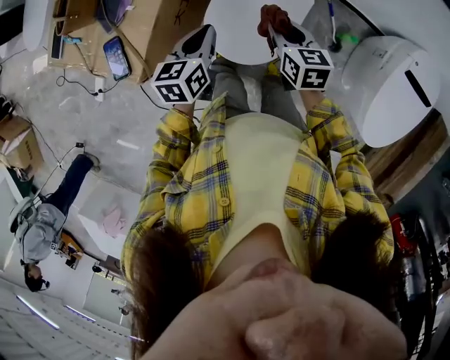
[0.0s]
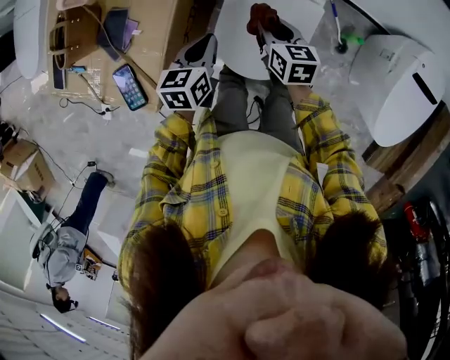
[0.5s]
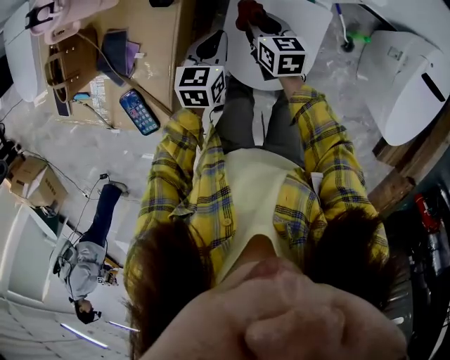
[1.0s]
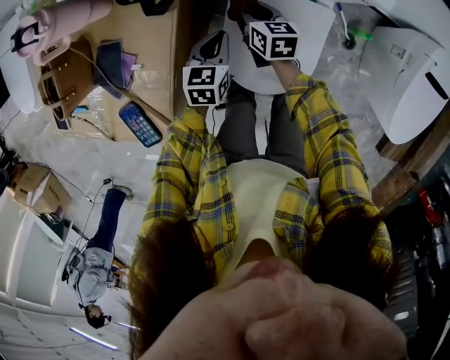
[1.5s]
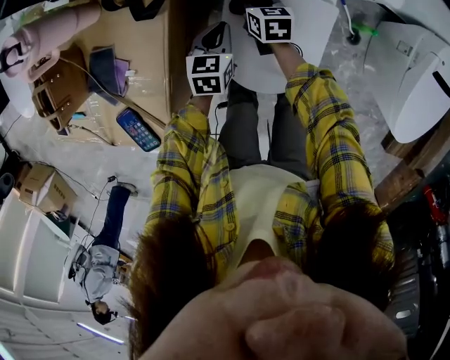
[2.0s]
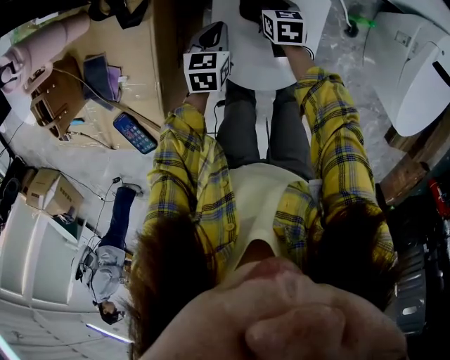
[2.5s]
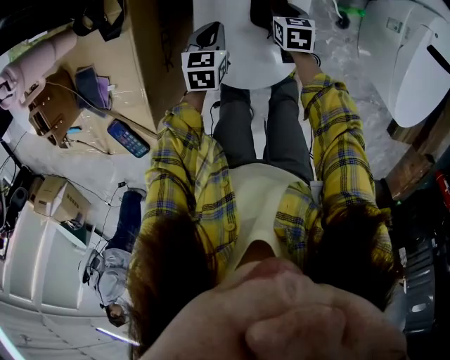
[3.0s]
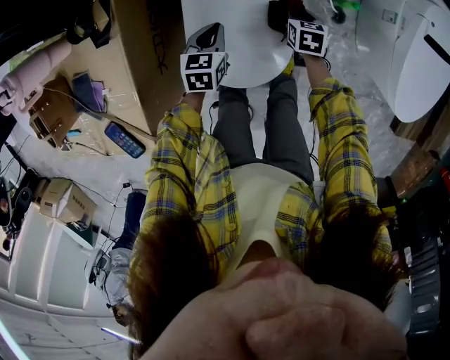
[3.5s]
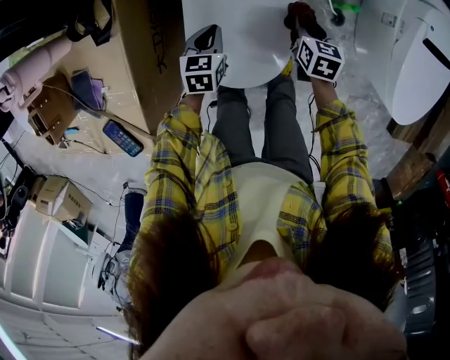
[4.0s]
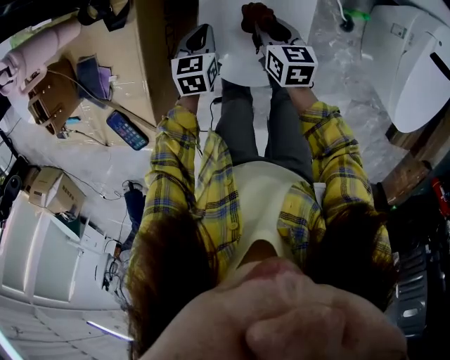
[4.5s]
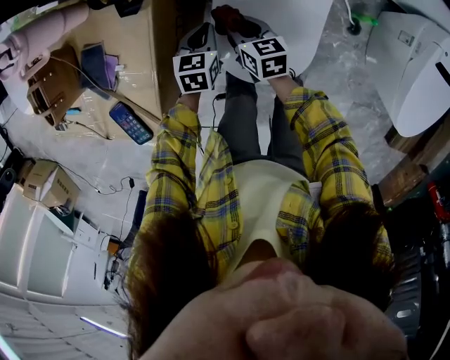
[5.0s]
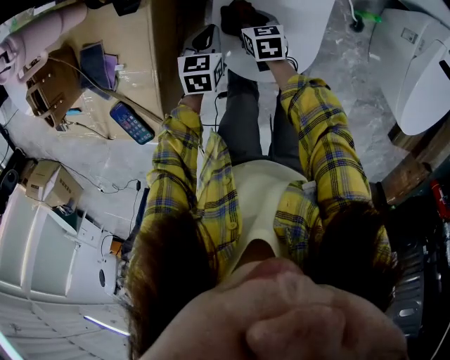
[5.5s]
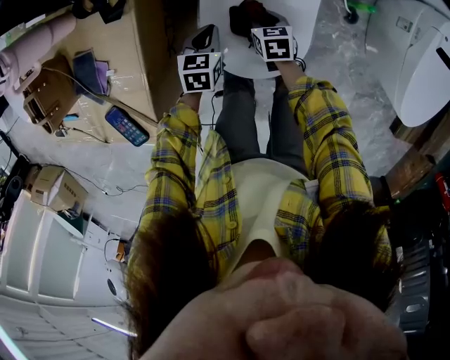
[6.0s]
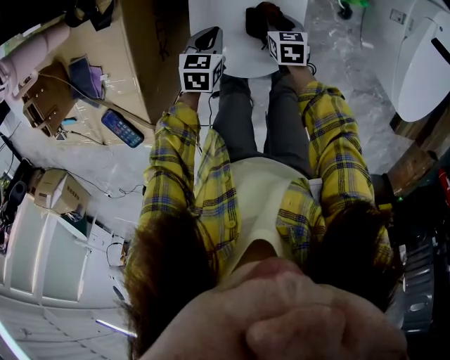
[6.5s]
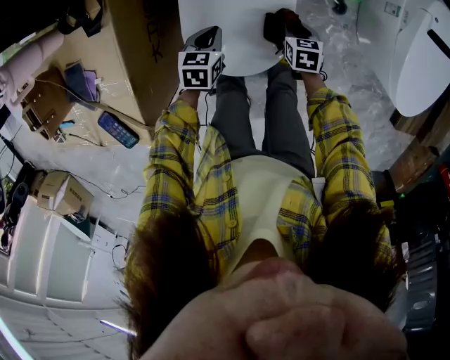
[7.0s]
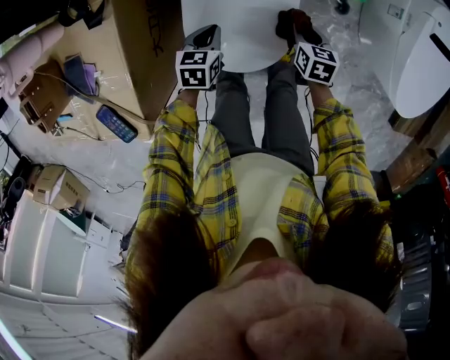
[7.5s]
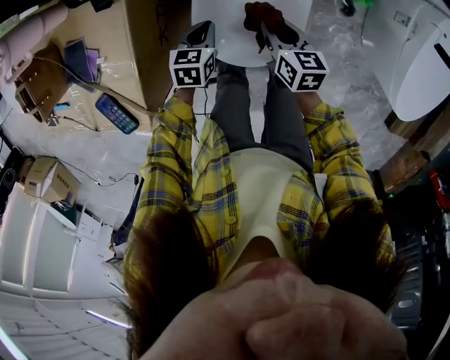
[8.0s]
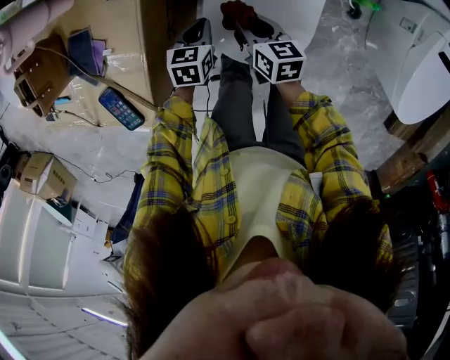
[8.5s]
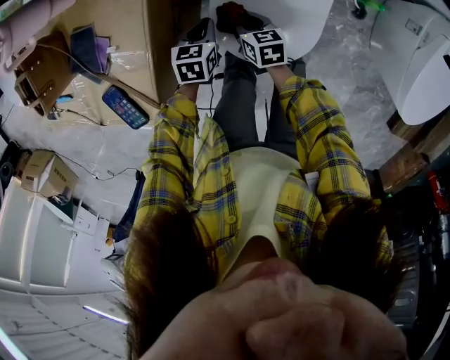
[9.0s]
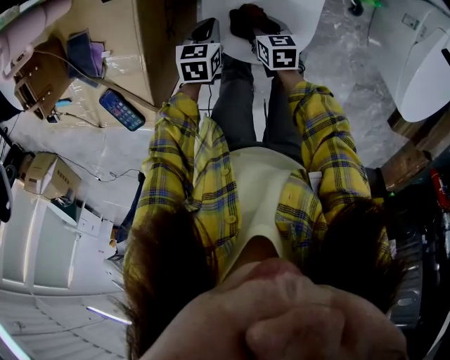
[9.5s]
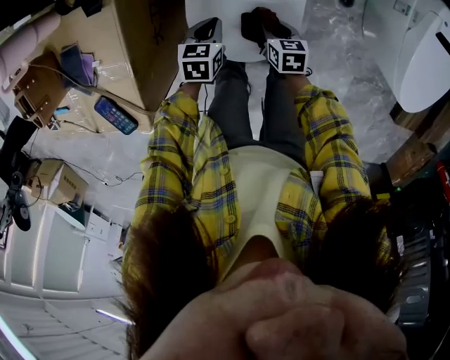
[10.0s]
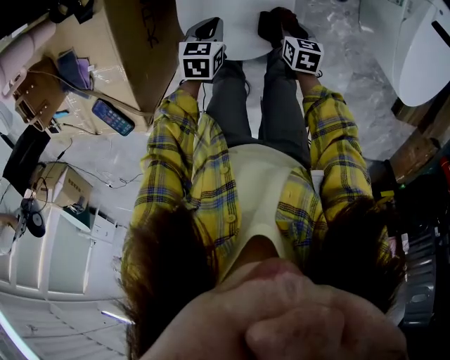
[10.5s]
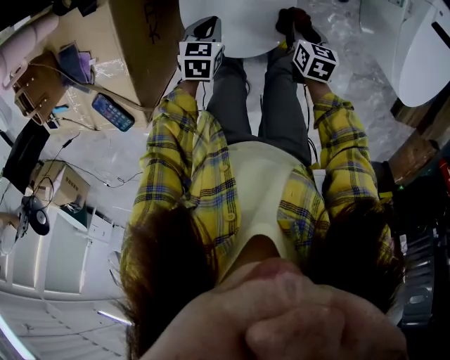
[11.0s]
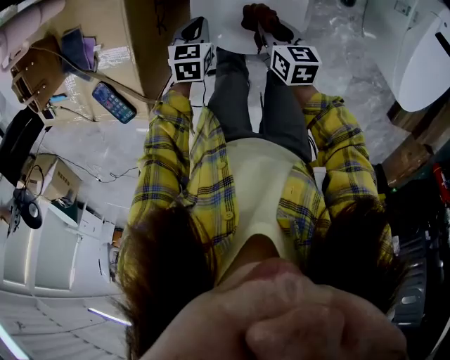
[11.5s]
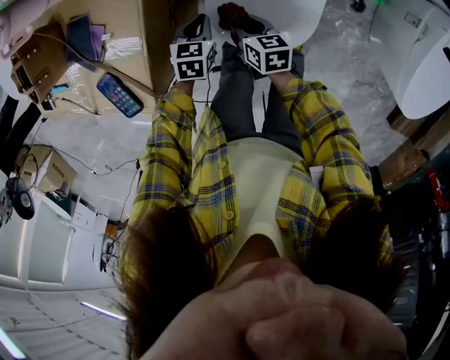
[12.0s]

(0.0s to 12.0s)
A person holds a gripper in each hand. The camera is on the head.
0.0s - 2.0s: The left gripper heads downward and forward, covering roughly 25 cm, and turns by approximately 20 degrees; the right gripper moves downward, forward and to the left, some 30 cm.
2.0s - 4.0s: The right gripper goes approximately 30 cm to the right, and changes its angle by about 20 degrees. Meanwhile the left gripper is displaced to the right by about 10 cm.
4.0s - 6.0s: The left gripper travels to the left by about 5 cm, while the right gripper travels to the left and downward by about 20 cm.
6.0s - 8.0s: The right gripper shifts some 10 cm upward, and reaches about 15 cm to the right, then returns.
8.0s - 10.0s: The right gripper moves downward and backward, about 10 cm, and reaches some 15 cm to the left, then returns. Meanwhile the left gripper travels to the left and back again, roughly 5 cm each way.
10.0s - 12.0s: The left gripper shifts by about 10 cm; the right gripper moves roughly 15 cm.

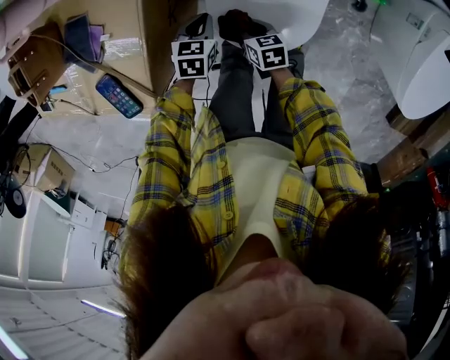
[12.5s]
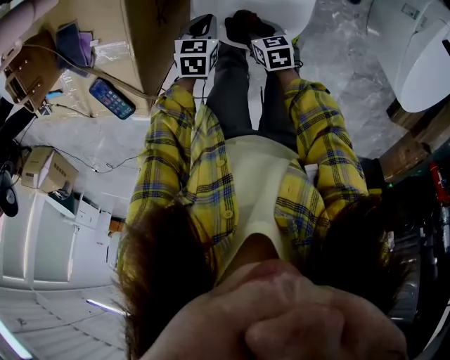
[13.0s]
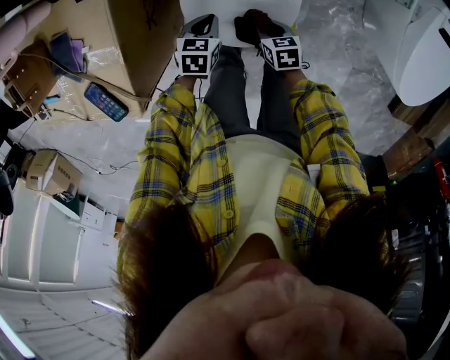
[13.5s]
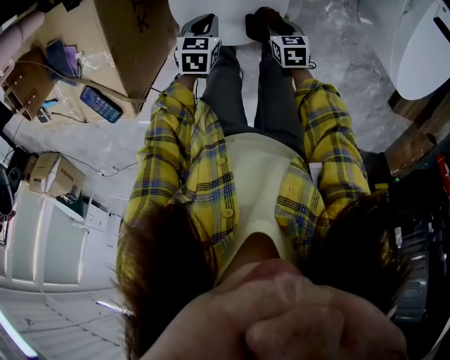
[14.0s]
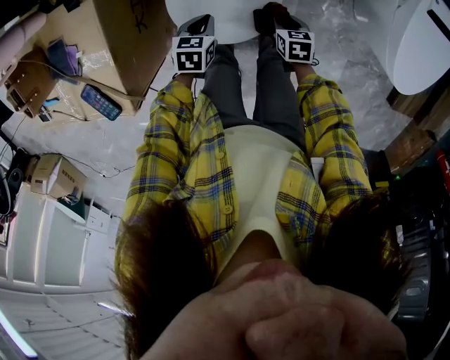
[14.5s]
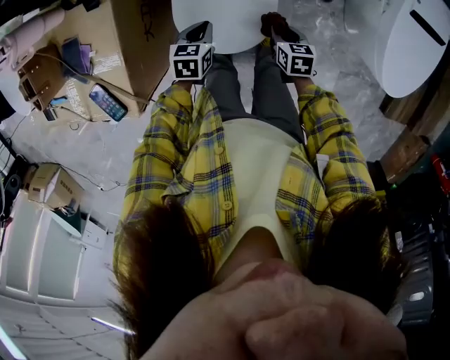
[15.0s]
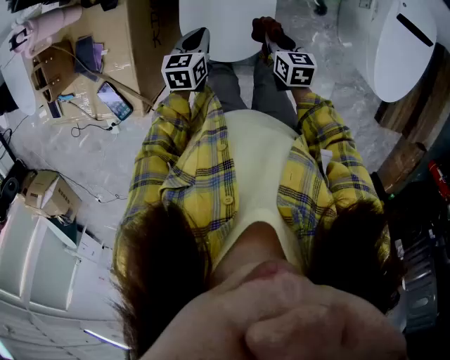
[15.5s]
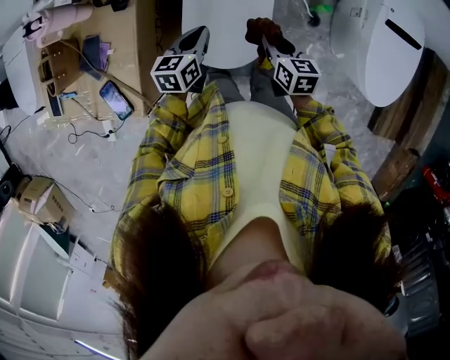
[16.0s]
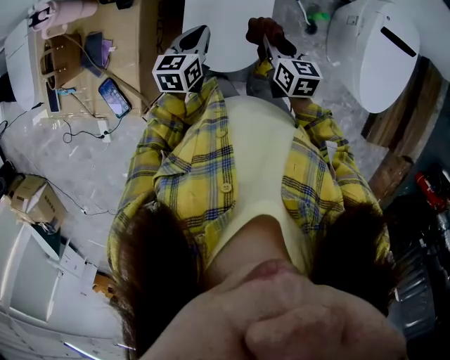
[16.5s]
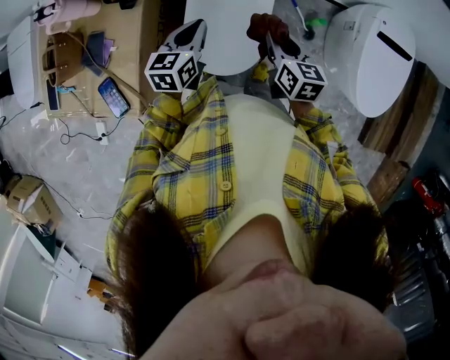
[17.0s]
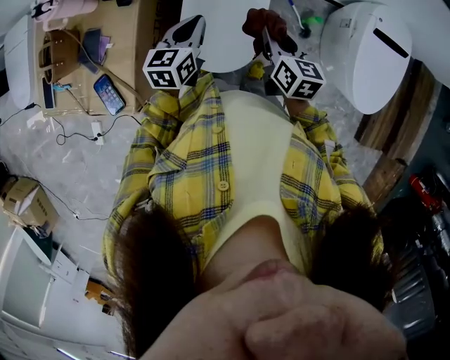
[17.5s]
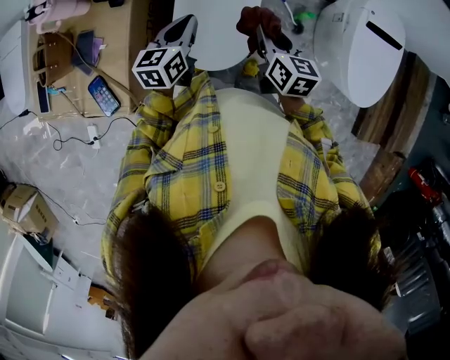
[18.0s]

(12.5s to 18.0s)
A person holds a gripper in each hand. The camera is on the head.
12.5s - 14.5s: The left gripper moves to the right, some 10 cm. The right gripper shifts about 25 cm to the right, and rotates about 20 degrees.
14.5s - 16.0s: The two grippers go some 20 cm upward. The right gripper changes its angle by some 30 degrees. The left gripper swivels about 30 degrees.
16.0s - 18.0s: The two grippers go some 10 cm upward.

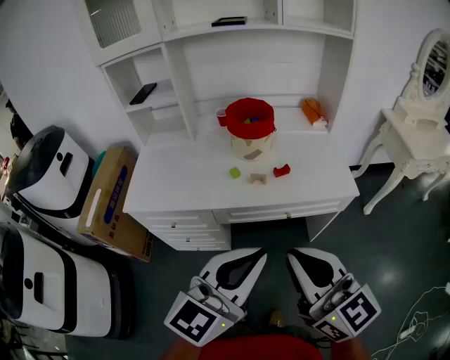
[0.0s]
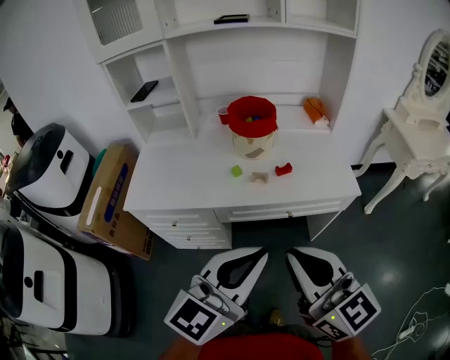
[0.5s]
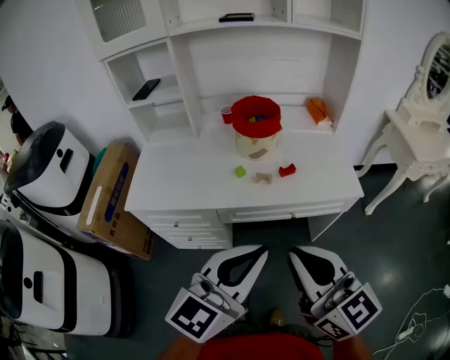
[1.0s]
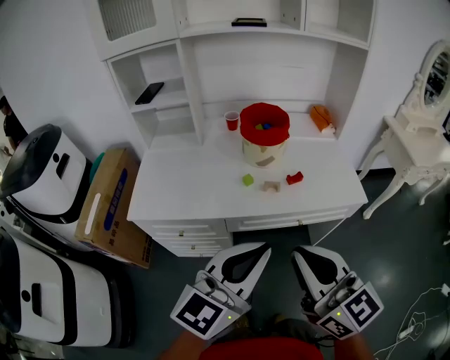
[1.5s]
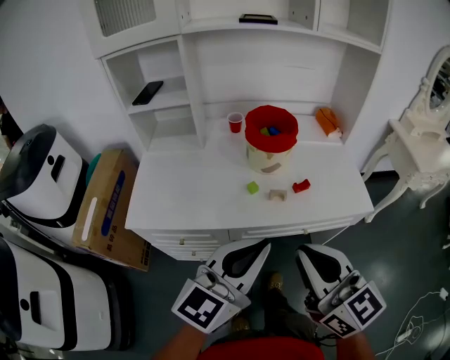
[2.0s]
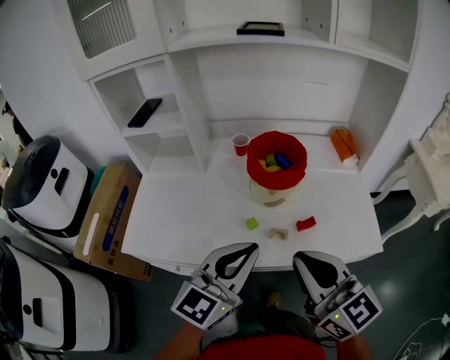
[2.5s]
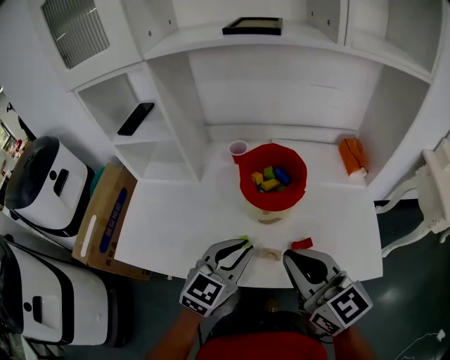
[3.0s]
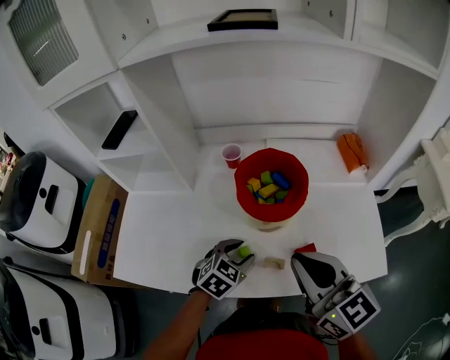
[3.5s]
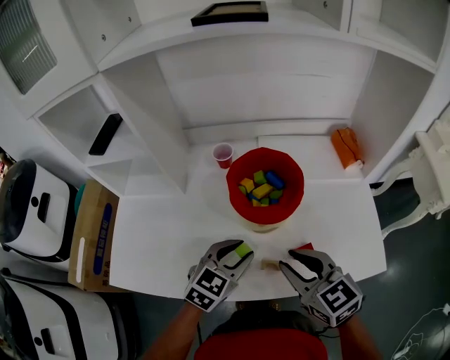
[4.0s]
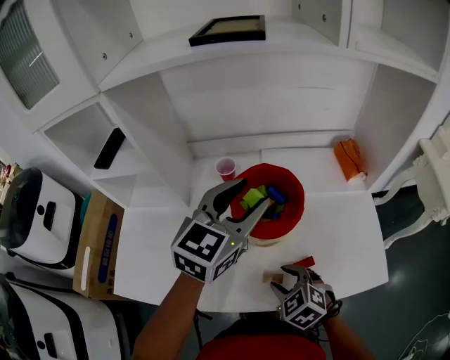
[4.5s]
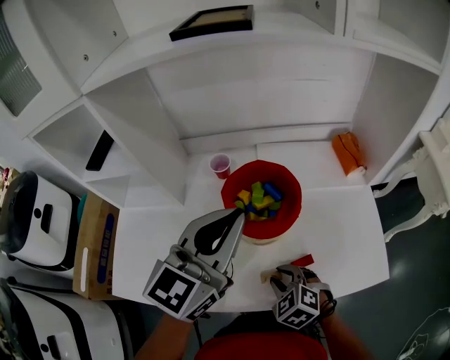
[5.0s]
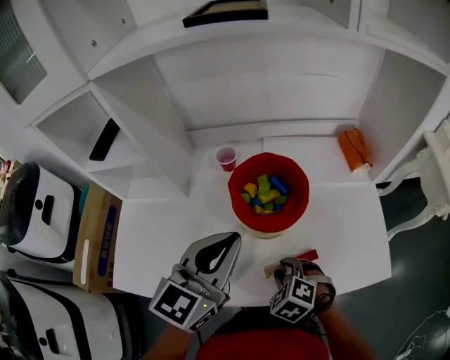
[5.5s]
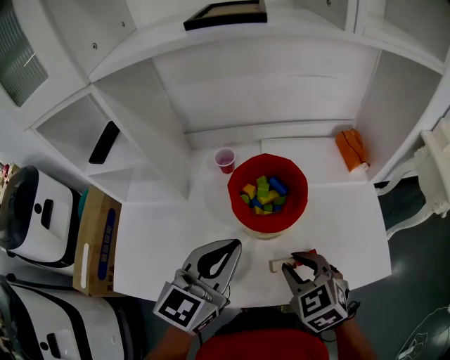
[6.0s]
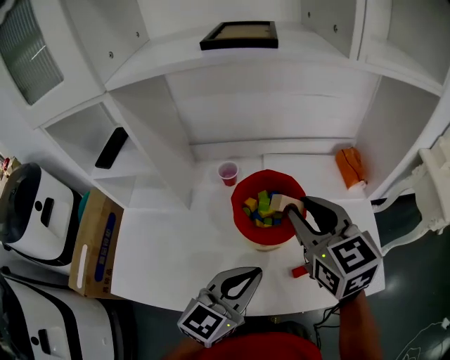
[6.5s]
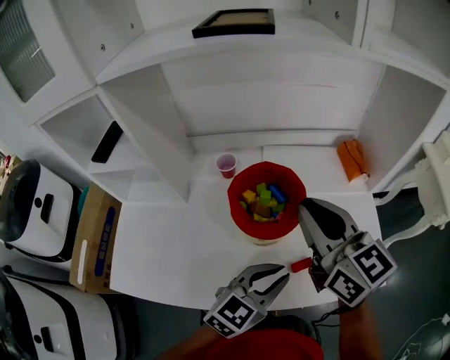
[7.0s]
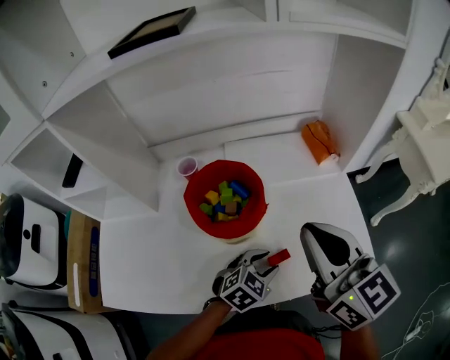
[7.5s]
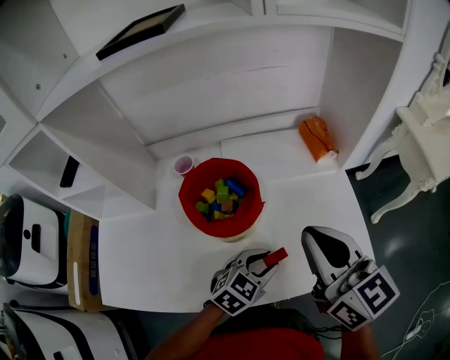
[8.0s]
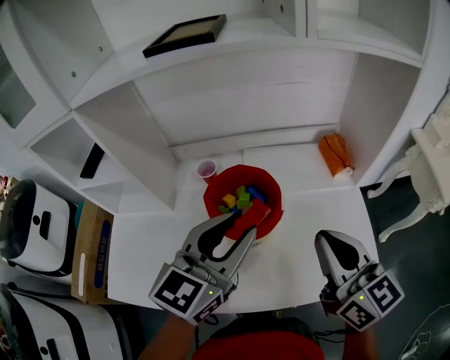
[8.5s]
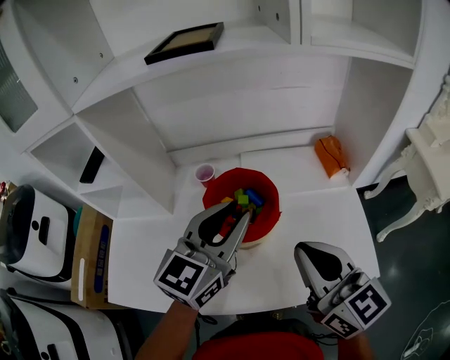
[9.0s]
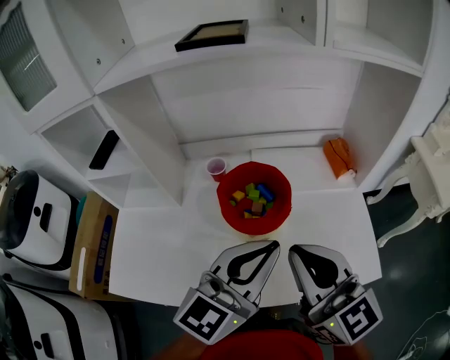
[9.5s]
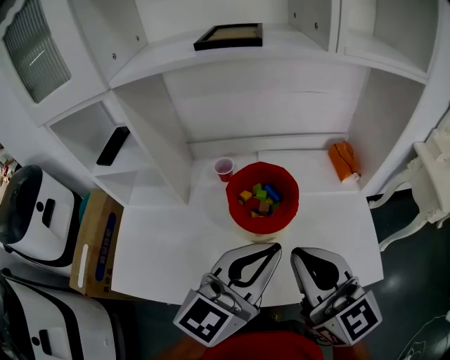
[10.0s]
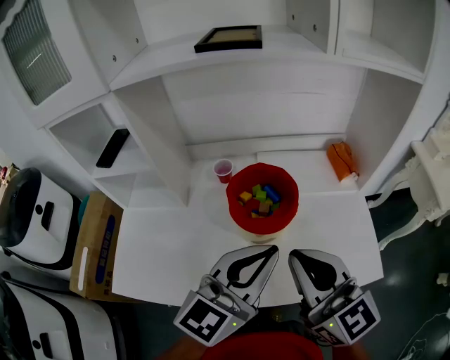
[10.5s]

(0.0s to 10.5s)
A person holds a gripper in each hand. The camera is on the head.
0.0s - 2.0s: Both grippers travel together forward and to the left, approximately 10 cm.
2.0s - 4.0s: Both grippers travel together forward and downward, roughly 30 cm. The right gripper swivels roughly 30 degrees, and opens up, while the left gripper points its fingers about 30 degrees further downward, and opens up.
4.0s - 6.5s: The left gripper shifts approximately 10 cm upward, turns by approximately 20 degrees, and closes. The right gripper travels forward and upward by roughly 20 cm.
6.5s - 8.5s: The right gripper shifts approximately 15 cm to the right and backward, and closes. Meanwhile the left gripper goes about 10 cm forward, reaches some 20 cm downward, then returns, and opens.
8.5s - 10.5s: The left gripper travels backward by some 10 cm, and closes, while the right gripper shifts approximately 10 cm to the left and backward.
